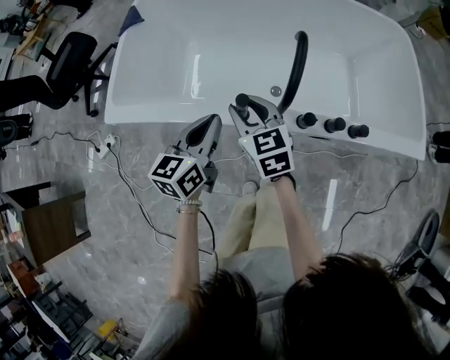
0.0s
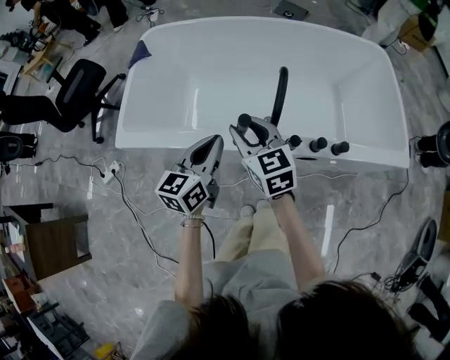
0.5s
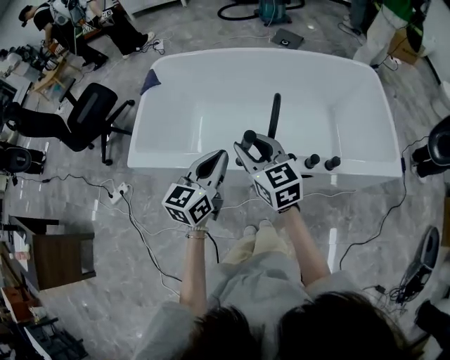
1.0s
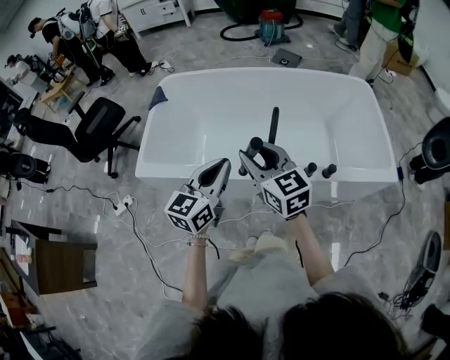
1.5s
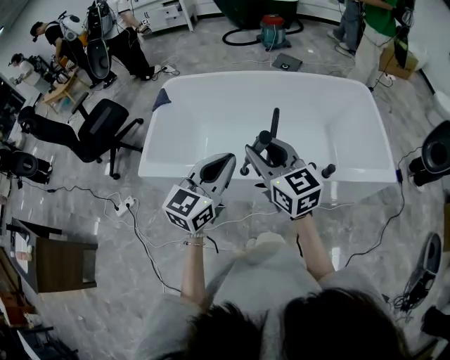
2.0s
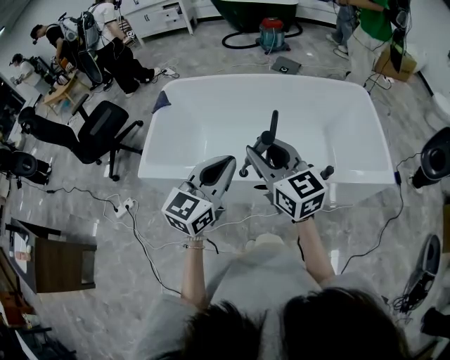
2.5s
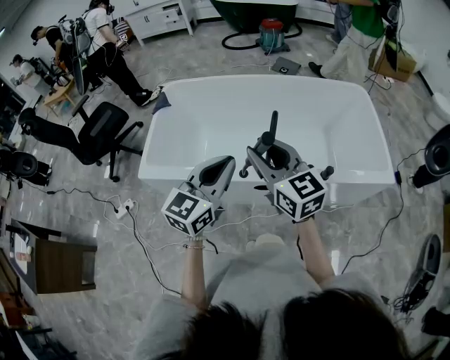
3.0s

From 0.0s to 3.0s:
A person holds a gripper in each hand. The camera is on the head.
From 0.0s to 1.5s: The two grippers go some 25 cm upward.
From 1.5s to 3.0s: The grippers both shift upward by roughly 5 cm.

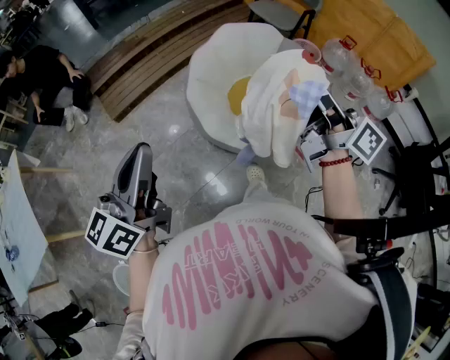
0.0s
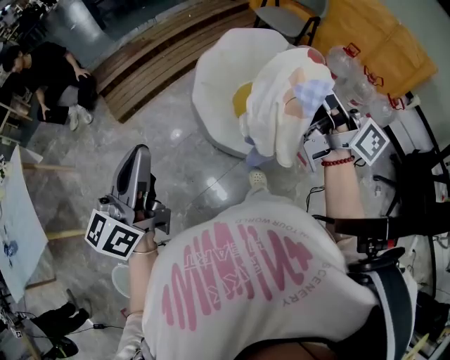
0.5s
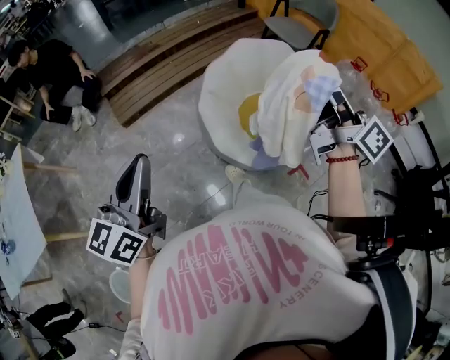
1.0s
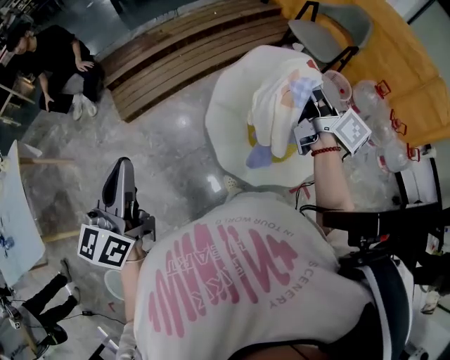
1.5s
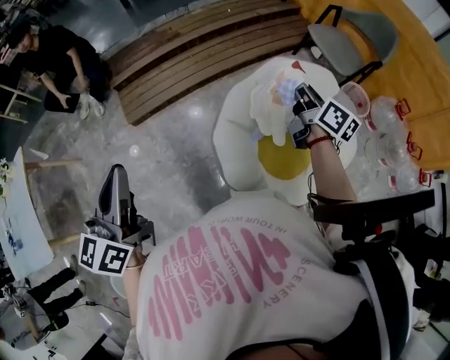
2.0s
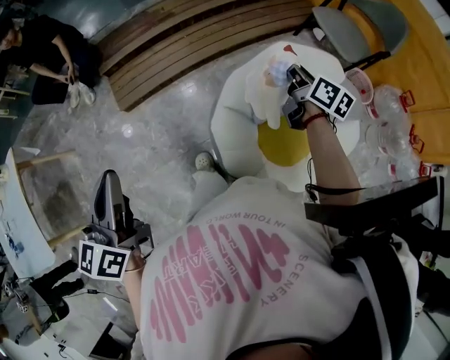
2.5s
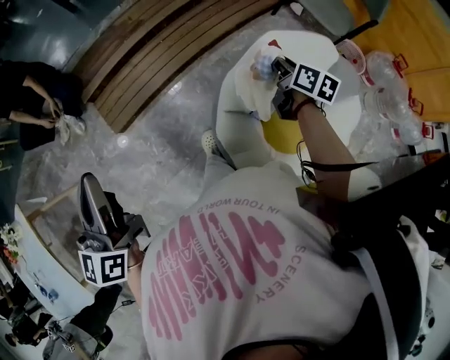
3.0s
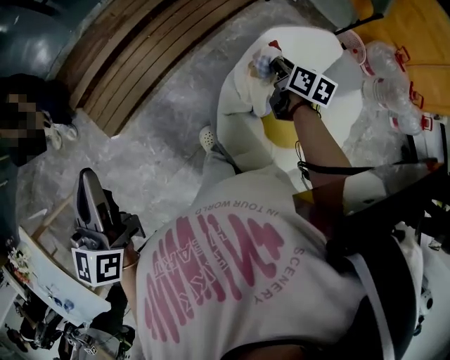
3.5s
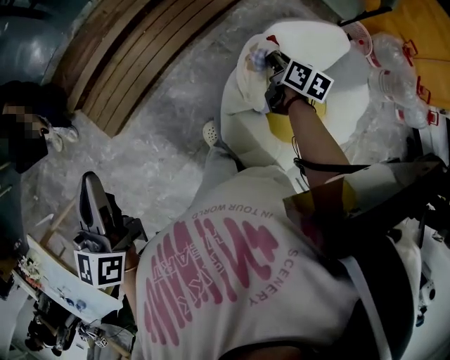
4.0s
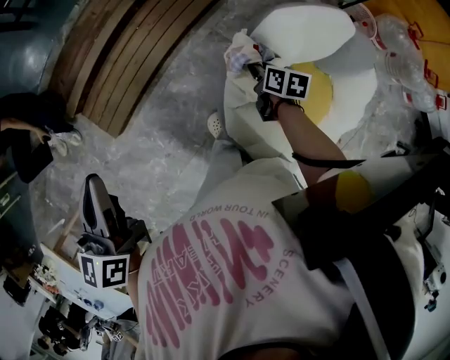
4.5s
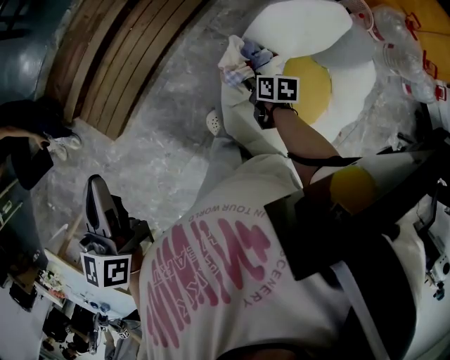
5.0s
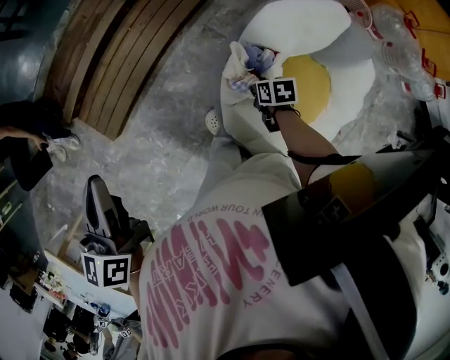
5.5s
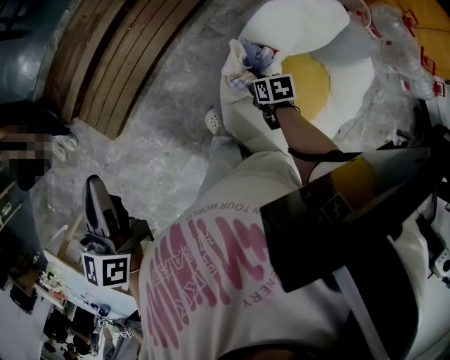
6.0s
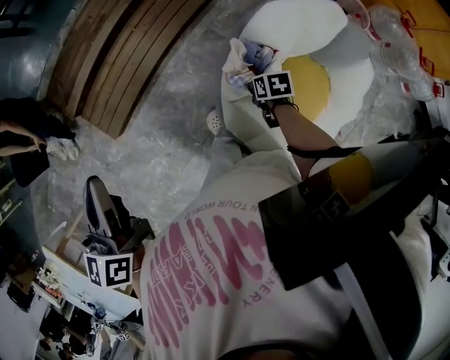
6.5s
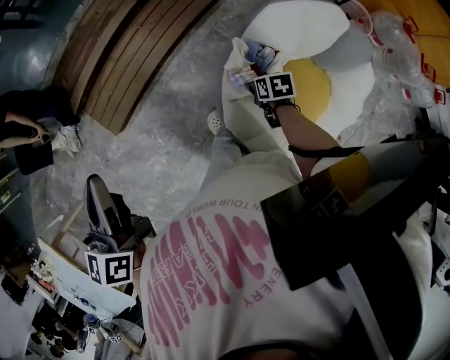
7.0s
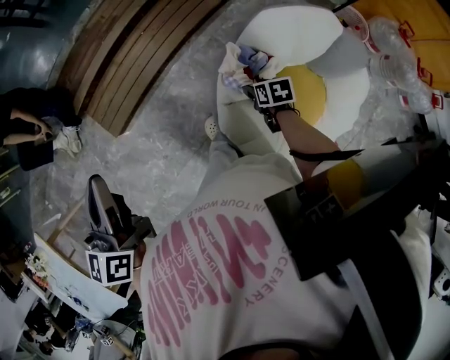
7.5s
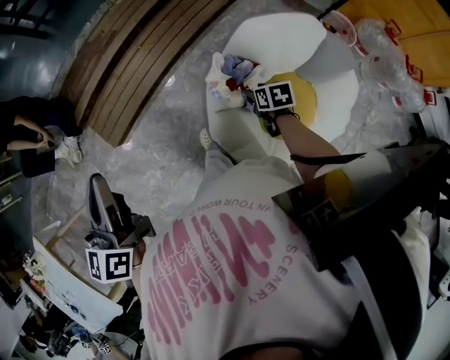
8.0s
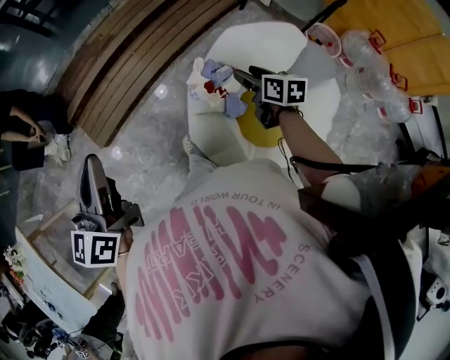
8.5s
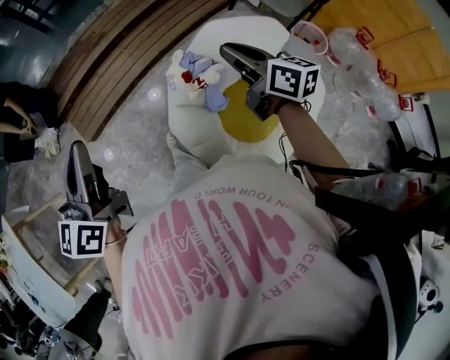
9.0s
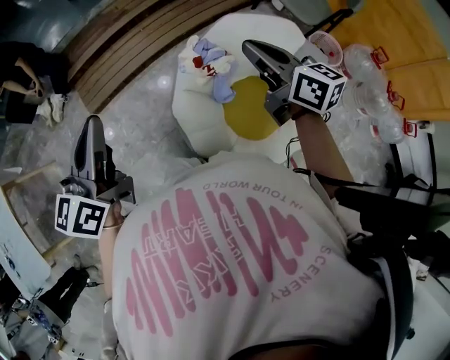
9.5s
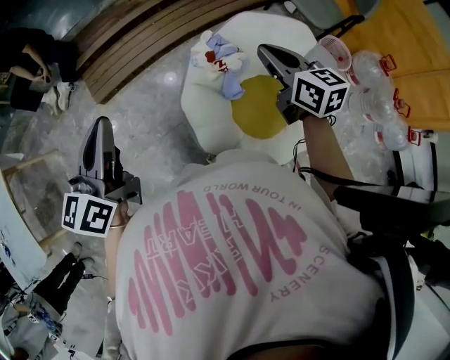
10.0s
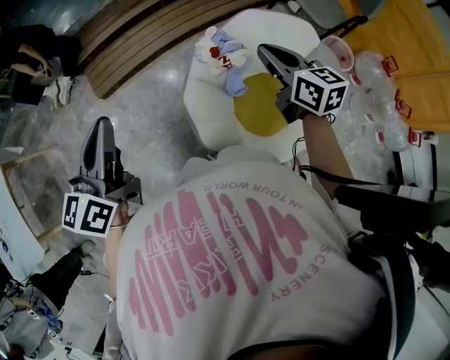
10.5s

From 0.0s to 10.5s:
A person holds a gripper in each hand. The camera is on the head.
From 0.0s to 2.0s: The right gripper goes approximately 50 cm forward and downward, and rotates approximately 30 degrees. The left gripper goes approximately 25 cm forward, and swivels some 30 degrees.
From 2.0s to 4.0s: The right gripper heads downward and forward, covering roughly 25 cm, and swivels roughly 30 degrees; the left gripper shifts some 25 cm forward.
From 4.0s to 6.5s: The right gripper is displaced downward, backward and to the left by approximately 20 cm, swivels some 40 degrees, and opens its fingers.
From 6.5s to 8.5s: The left gripper goes approximately 10 cm backward and to the right, while the right gripper heads upward and to the right, covering about 20 cm, angles its fingers upward, by some 30 degrees, and opens its fingers.
From 8.5s to 10.5s: The left gripper heads backward, covering some 15 cm, while the right gripper heads upward and backward, covering about 15 cm, swivels some 30 degrees, and closes up.

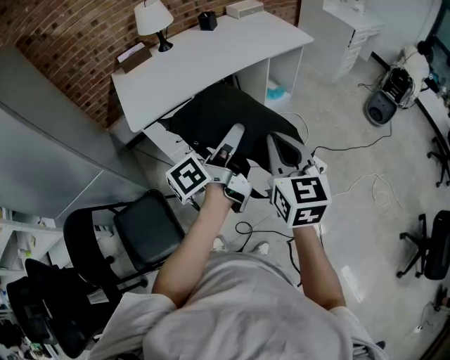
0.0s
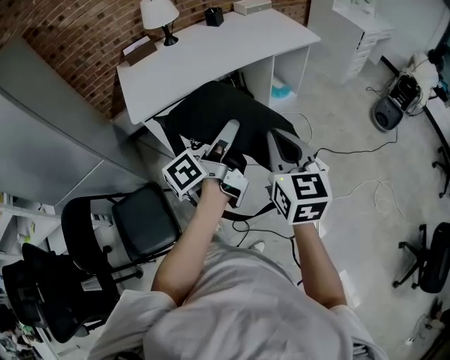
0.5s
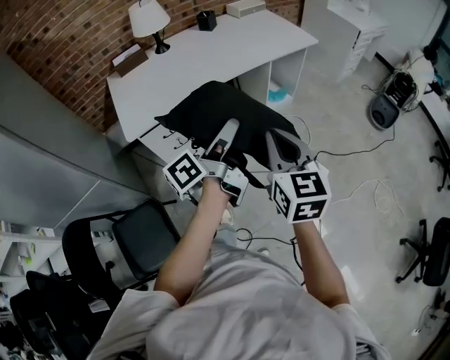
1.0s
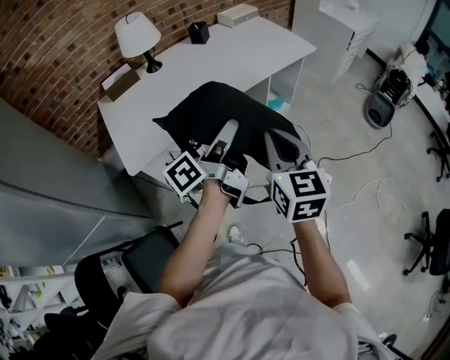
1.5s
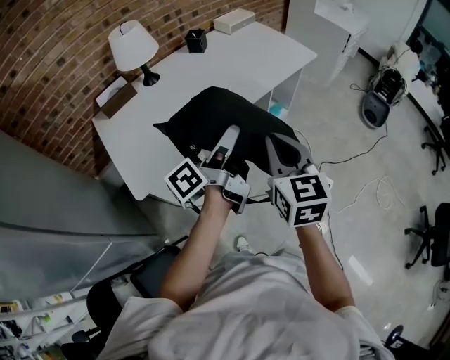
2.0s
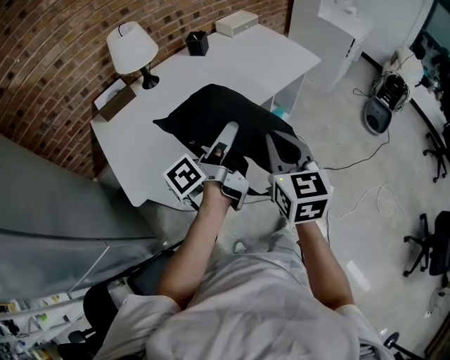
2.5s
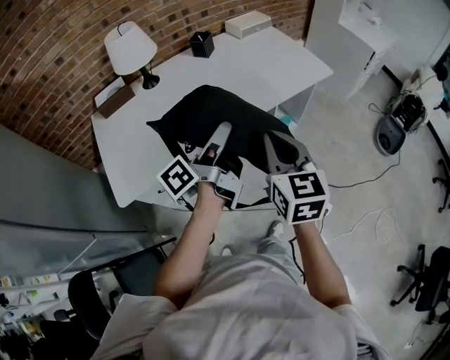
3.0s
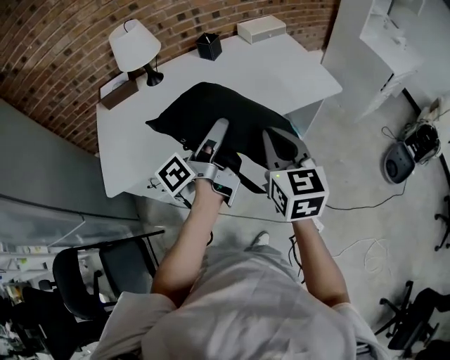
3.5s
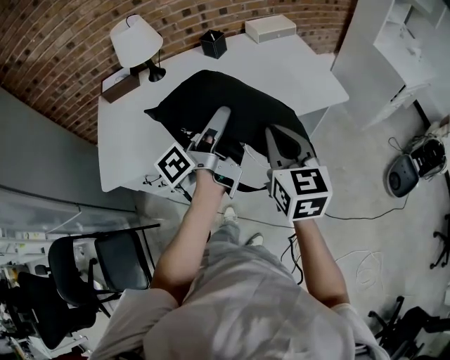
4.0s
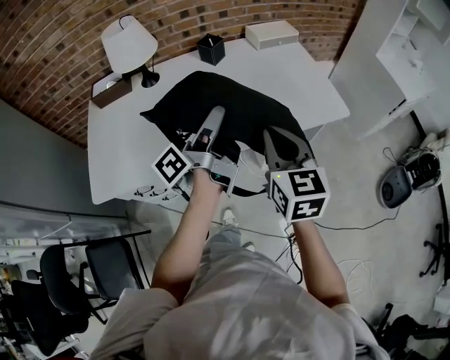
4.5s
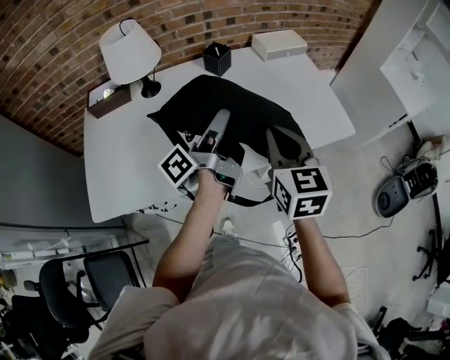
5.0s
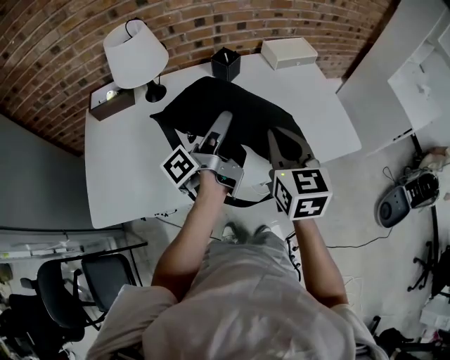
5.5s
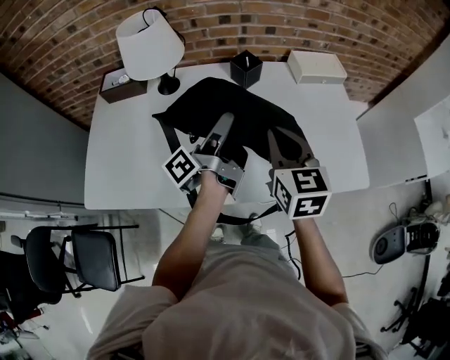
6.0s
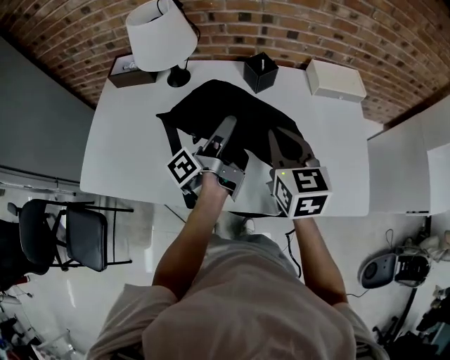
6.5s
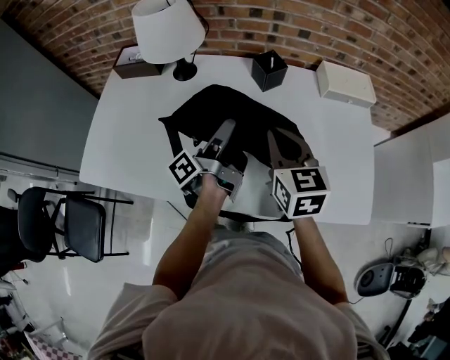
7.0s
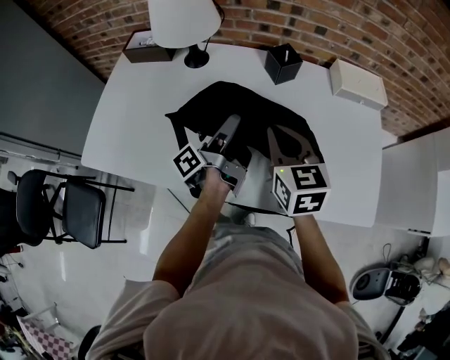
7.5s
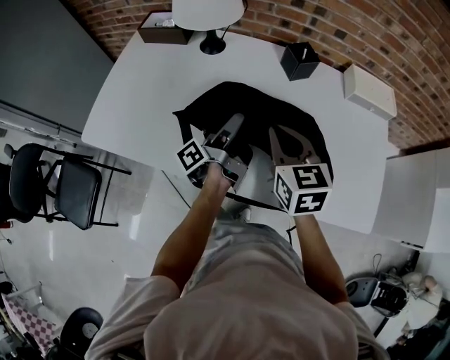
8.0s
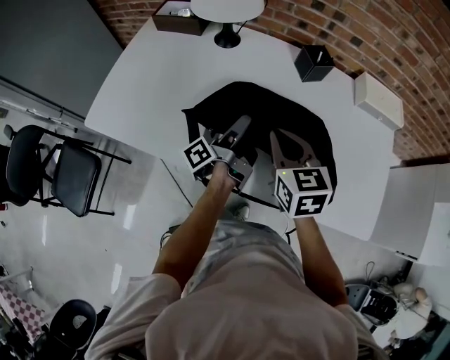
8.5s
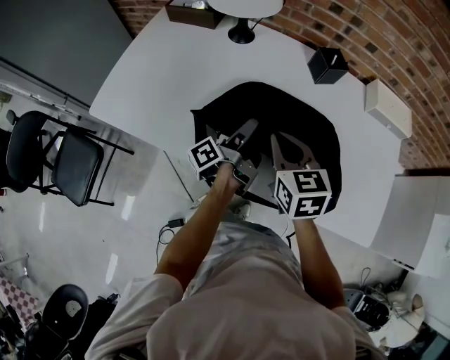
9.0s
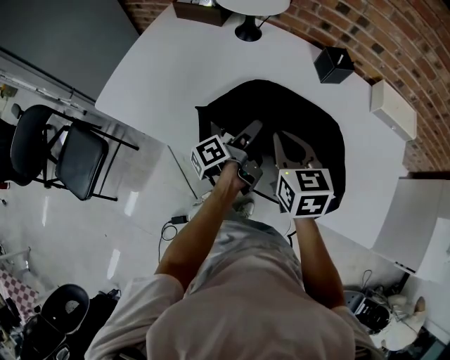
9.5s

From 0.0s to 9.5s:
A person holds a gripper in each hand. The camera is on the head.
From 0.0s to 2.0s: The right gripper moves roughly 25 cm.
From 2.0s to 4.0s: The right gripper moves some 30 cm, and rotates approximately 20 degrees.
From 4.0s to 5.5s: The right gripper shifts by approximately 20 cm.
From 5.5s to 7.5s: The right gripper changes place by about 15 cm, and swivels roughly 30 degrees.
From 7.5s to 9.5s: The right gripper ends up roughly 10 cm from where it was.

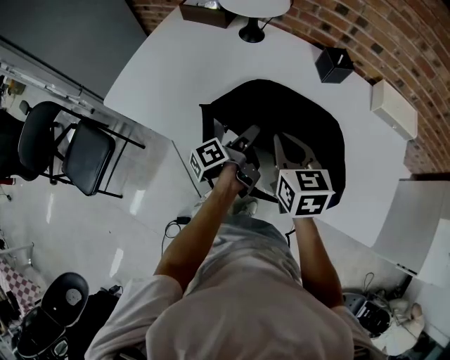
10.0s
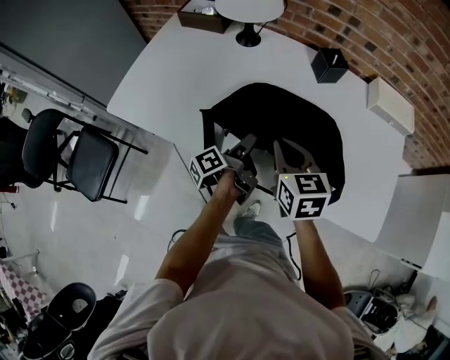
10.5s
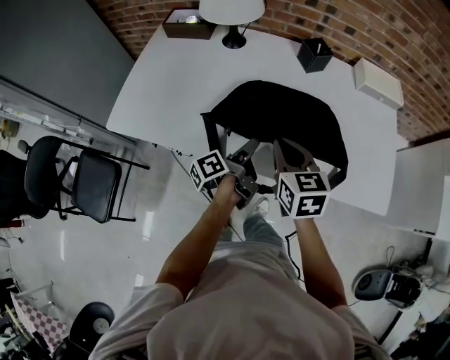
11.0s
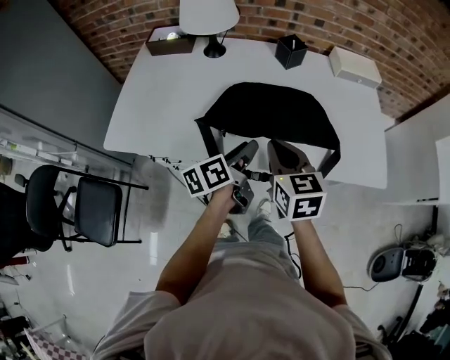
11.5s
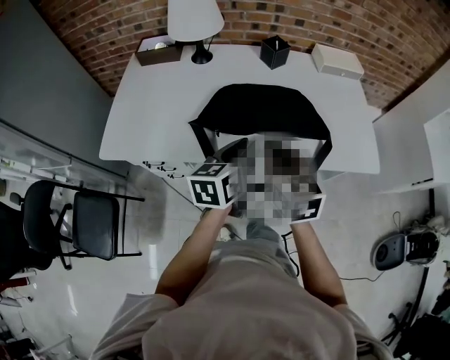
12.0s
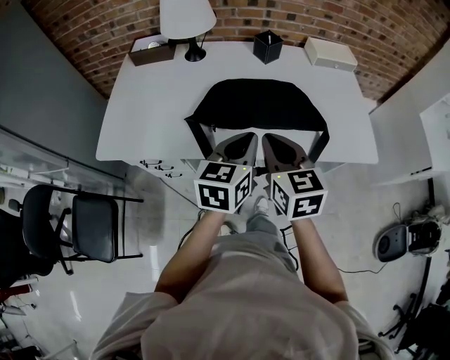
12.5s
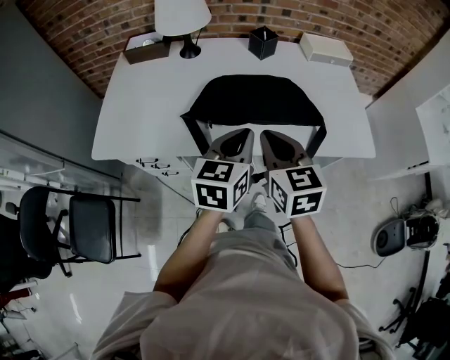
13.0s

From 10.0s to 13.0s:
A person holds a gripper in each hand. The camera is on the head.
From 10.0s to 11.5s: The right gripper ends up roughly 10 cm from where it was.
From 11.5s to 13.0s: The right gripper ends up roughly 5 cm from where it was.
